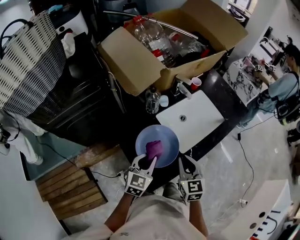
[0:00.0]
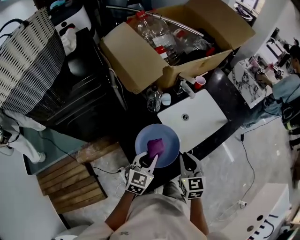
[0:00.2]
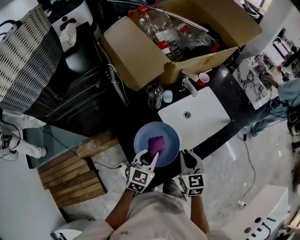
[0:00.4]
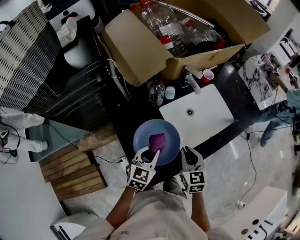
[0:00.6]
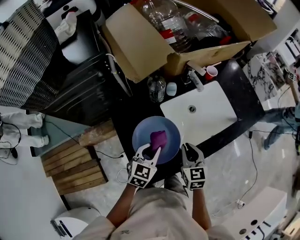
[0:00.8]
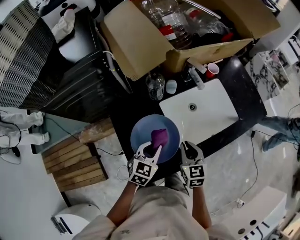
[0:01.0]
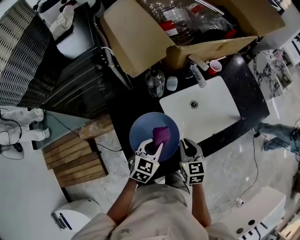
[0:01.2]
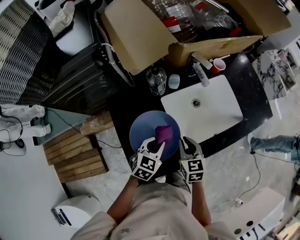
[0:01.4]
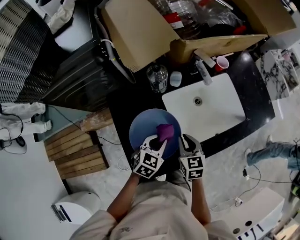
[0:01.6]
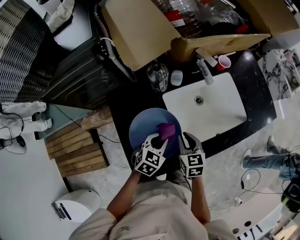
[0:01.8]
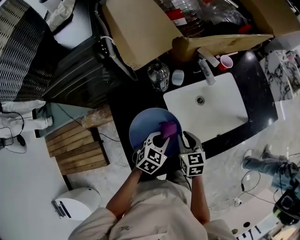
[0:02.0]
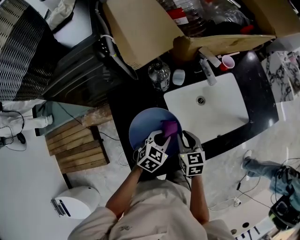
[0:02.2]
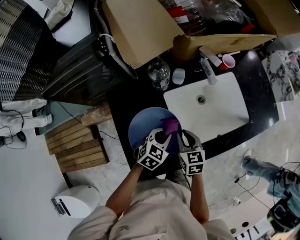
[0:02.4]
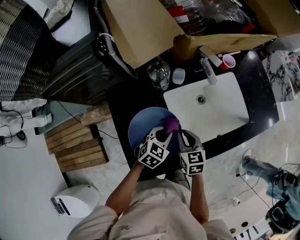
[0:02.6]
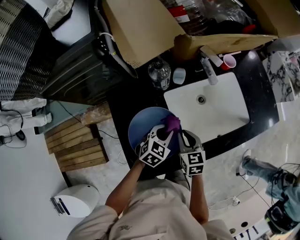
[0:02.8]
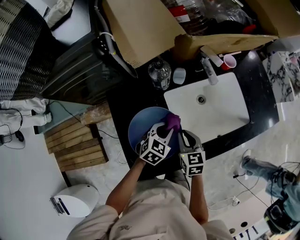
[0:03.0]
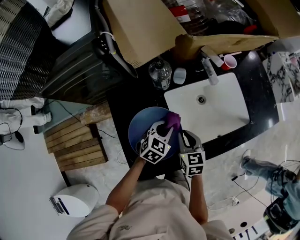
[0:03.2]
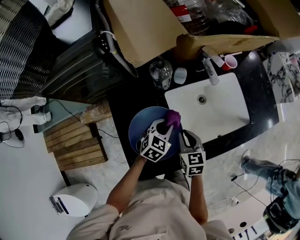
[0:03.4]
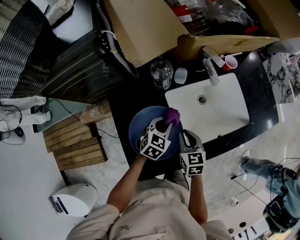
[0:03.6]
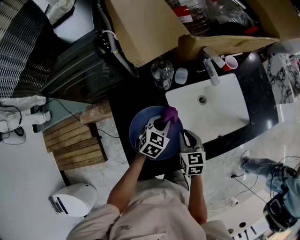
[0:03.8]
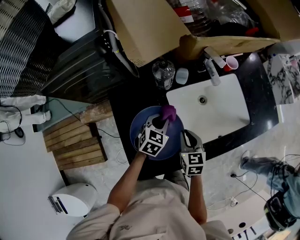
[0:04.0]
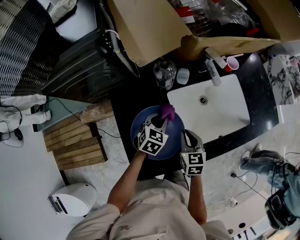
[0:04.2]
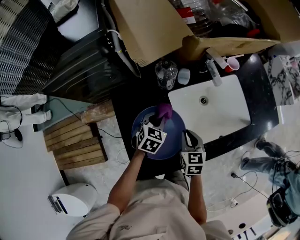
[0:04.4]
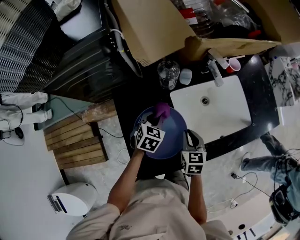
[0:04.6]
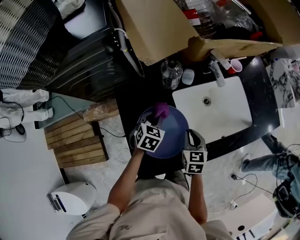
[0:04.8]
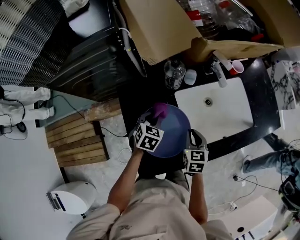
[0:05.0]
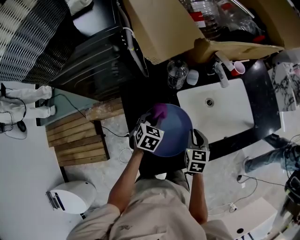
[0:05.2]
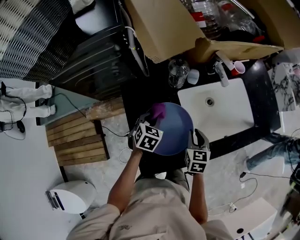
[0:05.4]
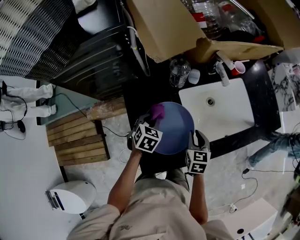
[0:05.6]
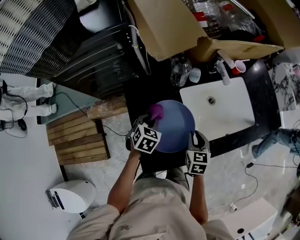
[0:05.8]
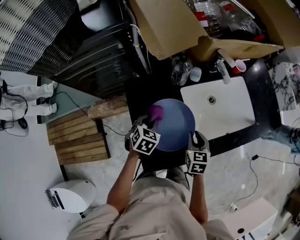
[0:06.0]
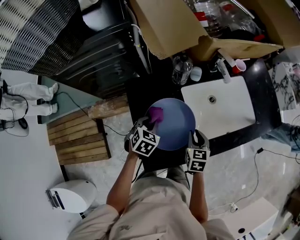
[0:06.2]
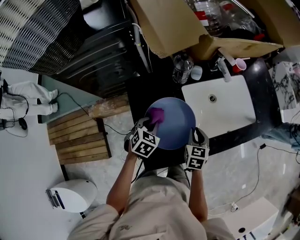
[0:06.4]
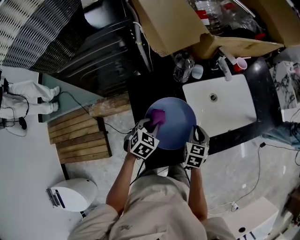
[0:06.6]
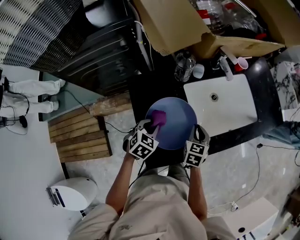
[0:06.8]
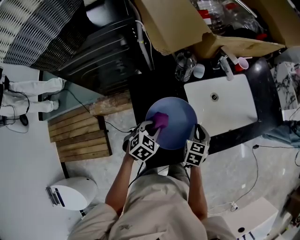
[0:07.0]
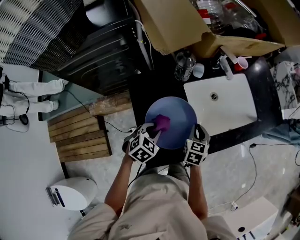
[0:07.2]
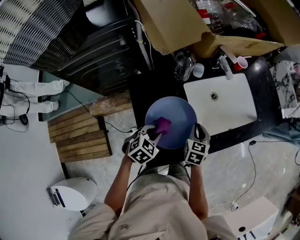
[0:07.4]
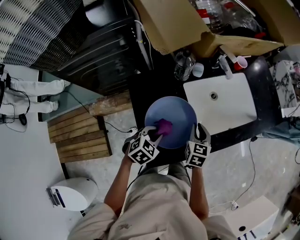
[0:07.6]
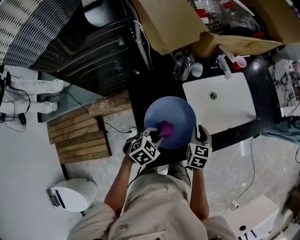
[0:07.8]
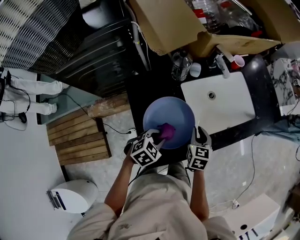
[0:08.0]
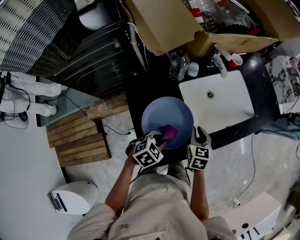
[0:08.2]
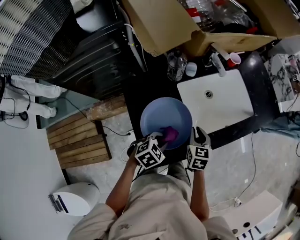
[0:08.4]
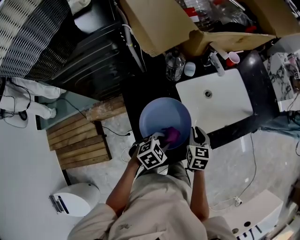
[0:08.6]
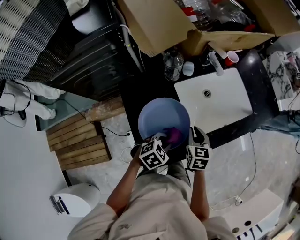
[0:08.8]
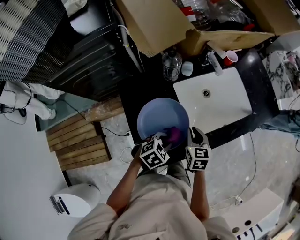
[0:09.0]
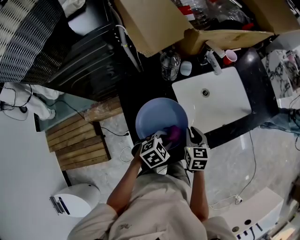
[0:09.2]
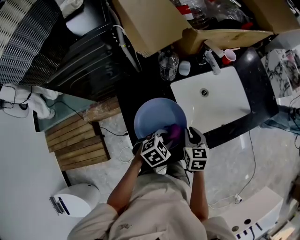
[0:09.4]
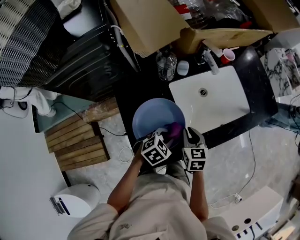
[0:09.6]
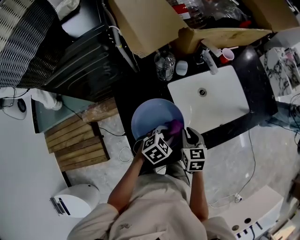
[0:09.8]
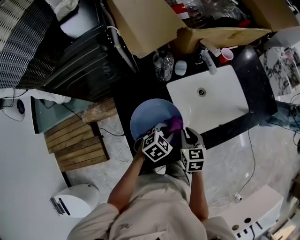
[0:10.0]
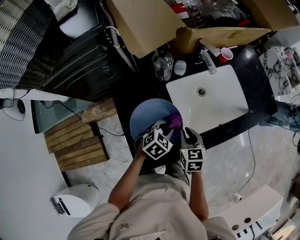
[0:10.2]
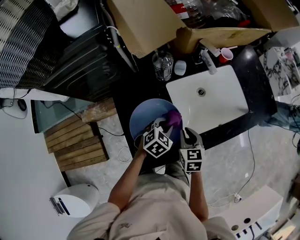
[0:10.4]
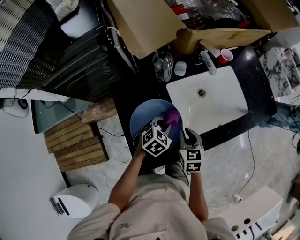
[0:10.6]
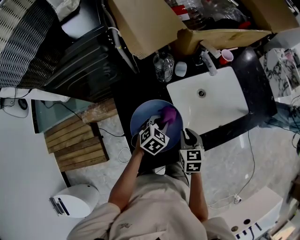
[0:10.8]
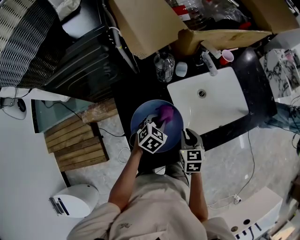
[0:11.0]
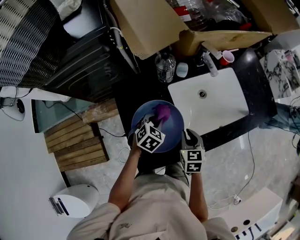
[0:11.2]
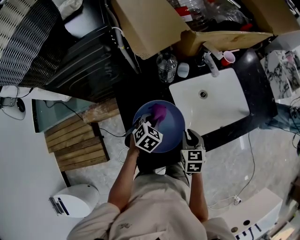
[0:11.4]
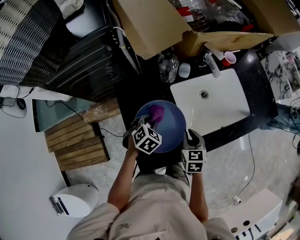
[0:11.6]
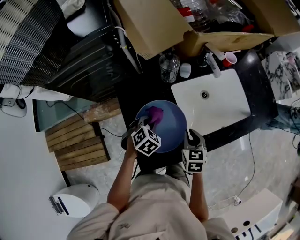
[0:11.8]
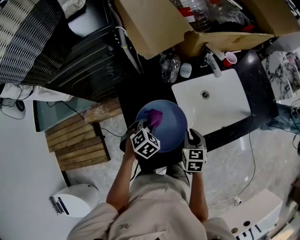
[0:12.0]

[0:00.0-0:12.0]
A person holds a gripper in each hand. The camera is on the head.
0:00.0 to 0:01.6: The left gripper travels downward, to the right and forward by some 15 cm, and rotates about 20 degrees; the right gripper heads downward and forward, covering some 15 cm, and rotates about 20 degrees.
0:01.6 to 0:03.0: The left gripper heads forward, covering roughly 5 cm.
0:03.0 to 0:04.4: The left gripper moves to the left, roughly 5 cm.
0:04.4 to 0:06.0: The left gripper travels to the left and backward by some 10 cm.
0:06.0 to 0:07.6: The left gripper heads backward, covering about 10 cm, and swivels about 20 degrees.
0:07.6 to 0:09.0: The left gripper shifts about 10 cm to the right.
0:09.0 to 0:10.4: The left gripper travels forward by approximately 10 cm.
0:10.4 to 0:12.0: The left gripper moves to the left, about 10 cm.

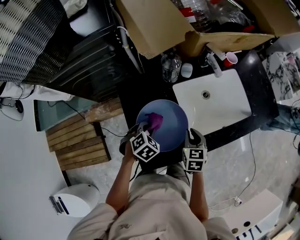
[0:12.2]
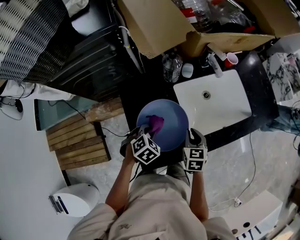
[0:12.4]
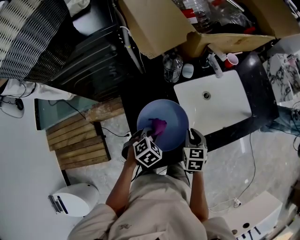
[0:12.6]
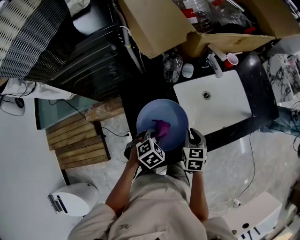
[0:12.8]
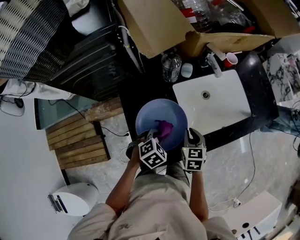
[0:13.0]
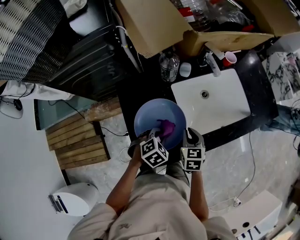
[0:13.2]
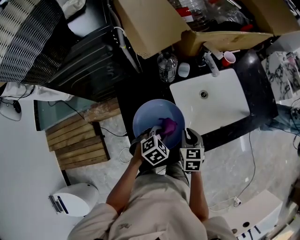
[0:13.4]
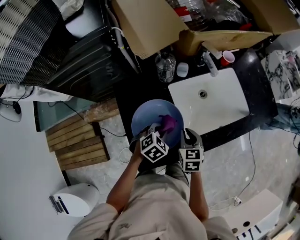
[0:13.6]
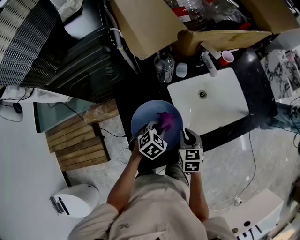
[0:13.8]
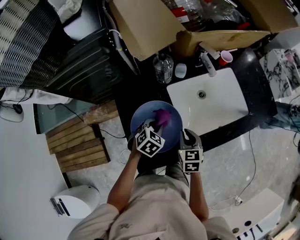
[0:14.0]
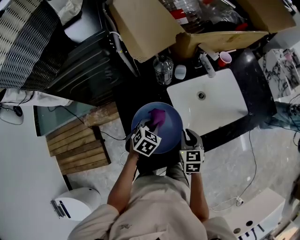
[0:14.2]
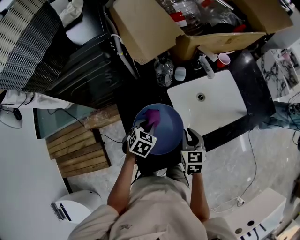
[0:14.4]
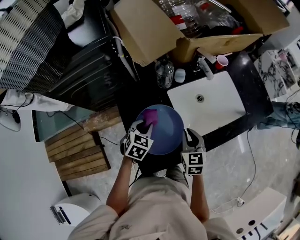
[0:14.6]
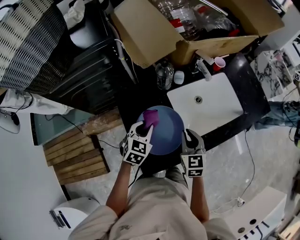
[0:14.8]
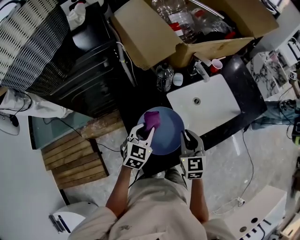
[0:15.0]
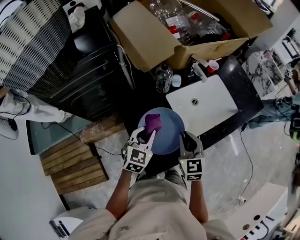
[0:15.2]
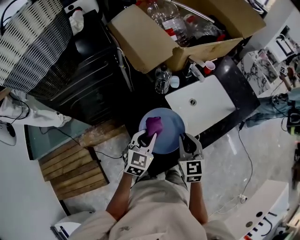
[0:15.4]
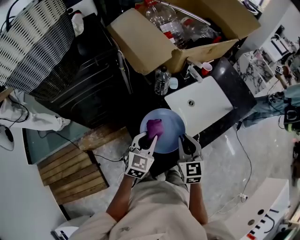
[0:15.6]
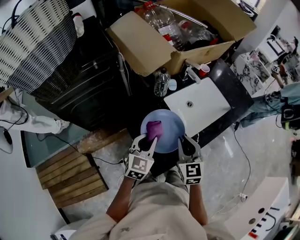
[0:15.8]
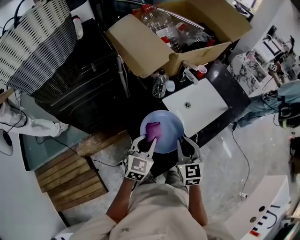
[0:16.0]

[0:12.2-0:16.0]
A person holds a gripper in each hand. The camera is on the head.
0:12.2 to 0:13.4: The left gripper is displaced to the right by about 10 cm.
0:13.4 to 0:14.8: The right gripper goes about 5 cm upward, while the left gripper moves to the left and upward, approximately 10 cm, and rotates approximately 30 degrees.
0:14.8 to 0:16.0: The right gripper goes approximately 15 cm backward, upward and to the left; the left gripper travels backward and upward by about 10 cm, and changes its angle by some 20 degrees.

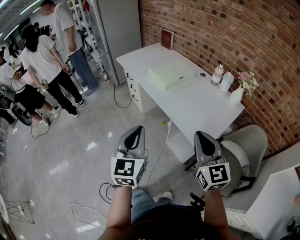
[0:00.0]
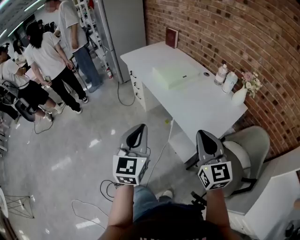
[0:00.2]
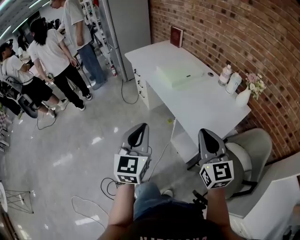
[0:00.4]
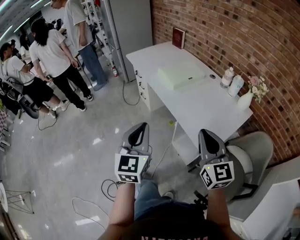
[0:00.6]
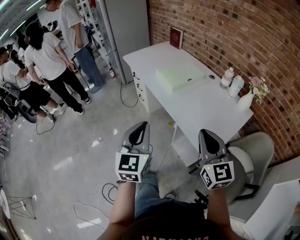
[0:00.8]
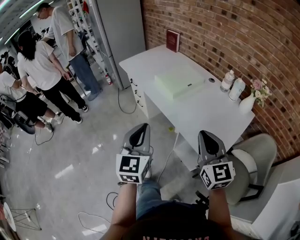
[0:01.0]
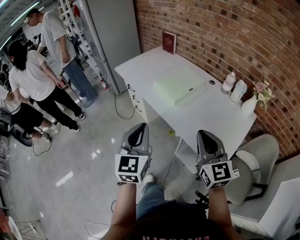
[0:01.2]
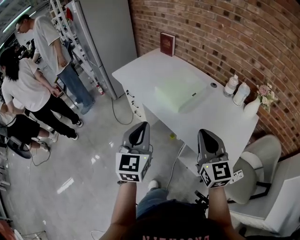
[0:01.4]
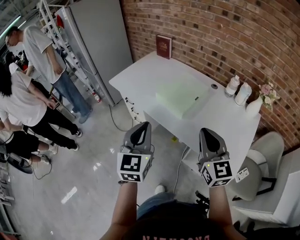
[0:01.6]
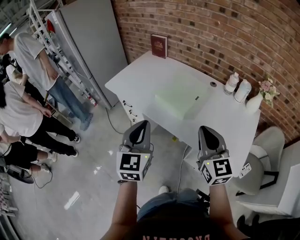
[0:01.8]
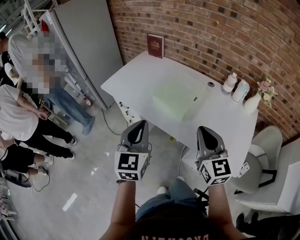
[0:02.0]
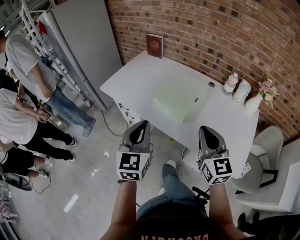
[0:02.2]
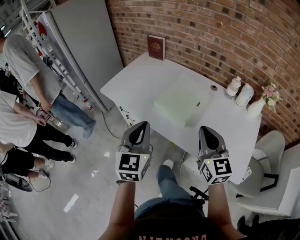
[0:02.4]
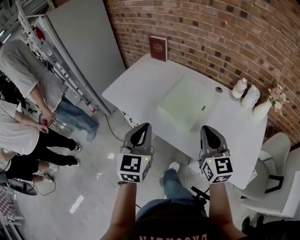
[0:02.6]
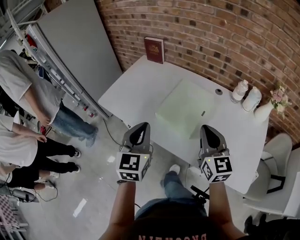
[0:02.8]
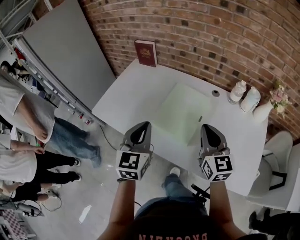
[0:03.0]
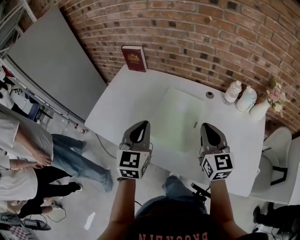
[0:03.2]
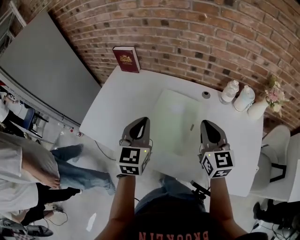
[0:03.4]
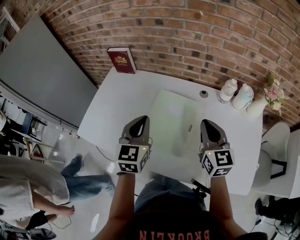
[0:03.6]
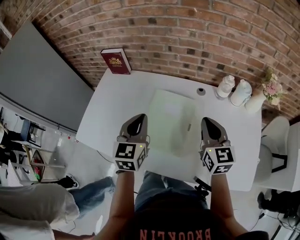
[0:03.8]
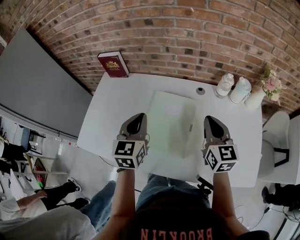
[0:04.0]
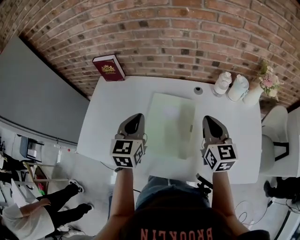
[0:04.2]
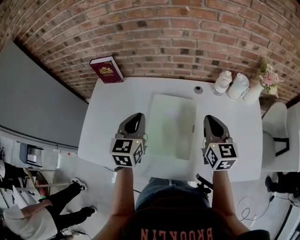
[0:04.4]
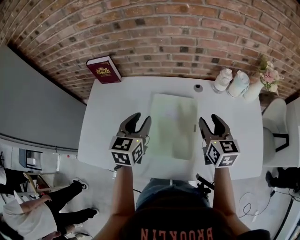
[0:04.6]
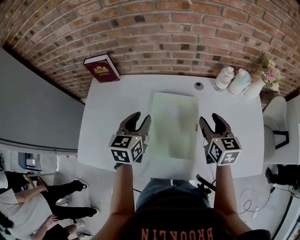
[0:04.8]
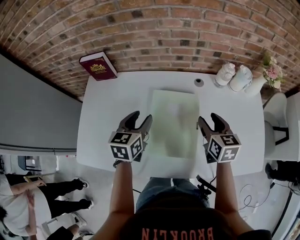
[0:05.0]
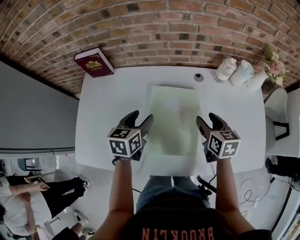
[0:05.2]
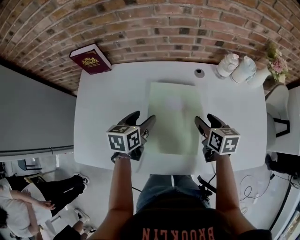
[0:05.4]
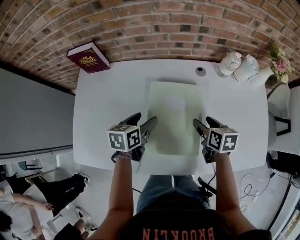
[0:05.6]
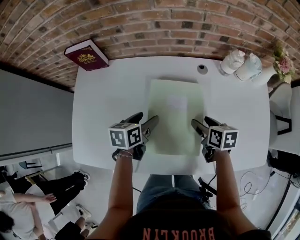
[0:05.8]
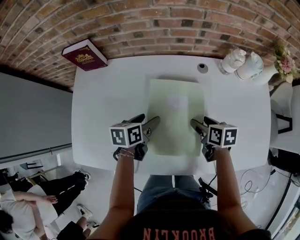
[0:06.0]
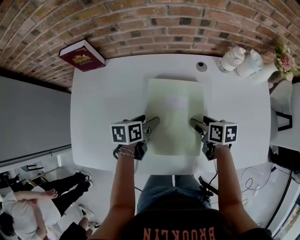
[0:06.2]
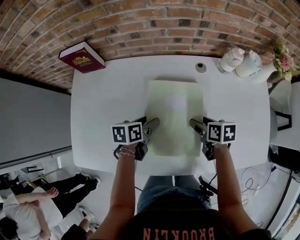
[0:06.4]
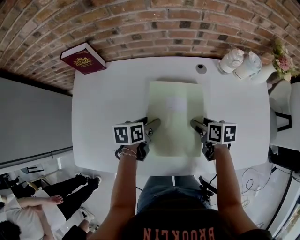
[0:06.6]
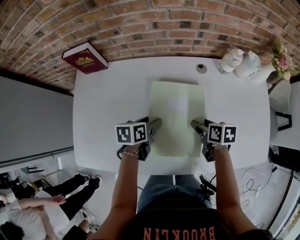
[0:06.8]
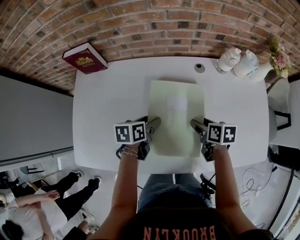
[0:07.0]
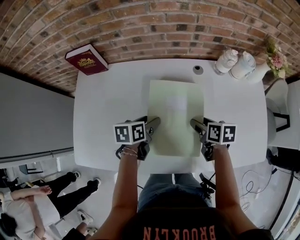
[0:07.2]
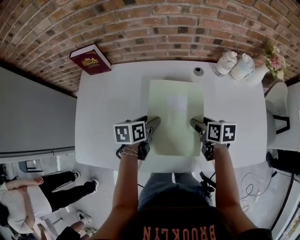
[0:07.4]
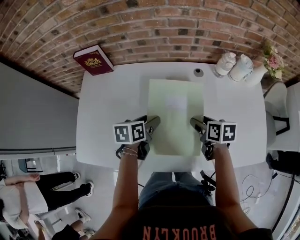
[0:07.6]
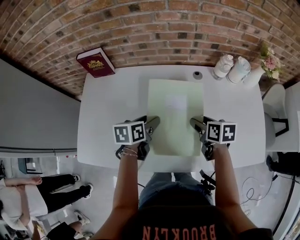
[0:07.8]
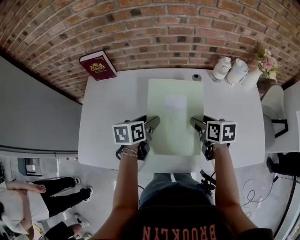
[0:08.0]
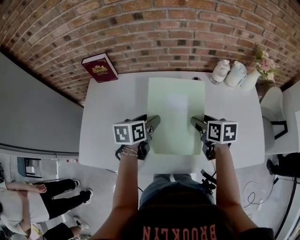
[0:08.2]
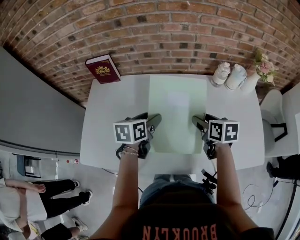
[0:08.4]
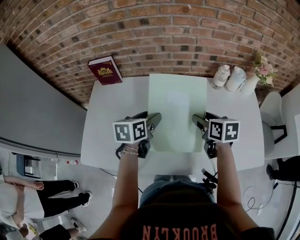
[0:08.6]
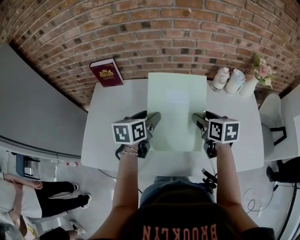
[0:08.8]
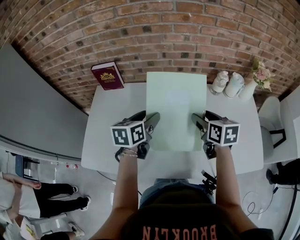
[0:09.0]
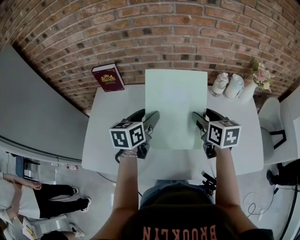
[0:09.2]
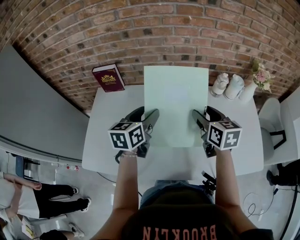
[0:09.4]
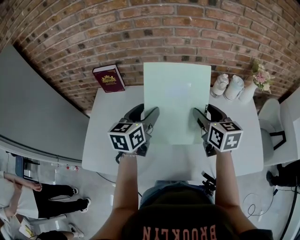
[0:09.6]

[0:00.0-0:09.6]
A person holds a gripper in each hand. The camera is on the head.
0:00.0 to 0:01.6: The grippers both shift forward by approximately 30 cm.
0:01.6 to 0:03.2: The grippers both shift forward by some 30 cm. The right gripper swivels approximately 20 degrees.
0:03.2 to 0:04.8: The right gripper travels forward and downward by roughly 10 cm, turns by about 30 degrees, and opens. The left gripper heads forward and downward, covering about 20 cm, changes its angle by some 30 degrees, and opens its fingers.
0:04.8 to 0:06.4: Both grippers move downward, approximately 15 cm. The left gripper changes its angle by approximately 40 degrees, and opens its fingers; the right gripper swivels about 40 degrees.
0:06.4 to 0:08.0: The two grippers go about 10 cm upward.
0:08.0 to 0:09.6: The two grippers go about 15 cm upward. The right gripper swivels some 30 degrees; the left gripper changes its angle by some 30 degrees.
